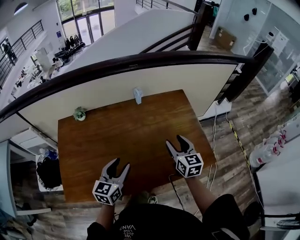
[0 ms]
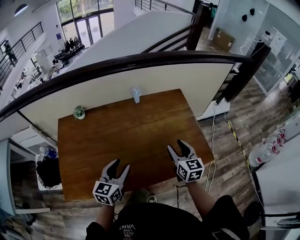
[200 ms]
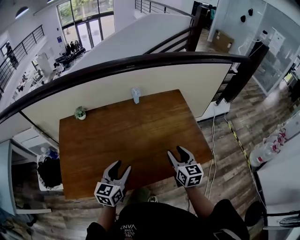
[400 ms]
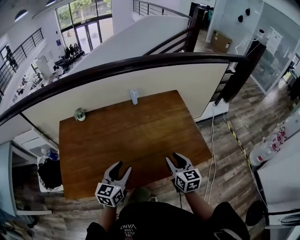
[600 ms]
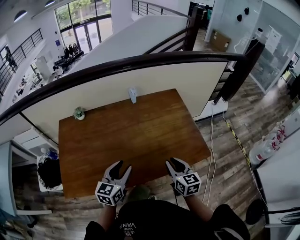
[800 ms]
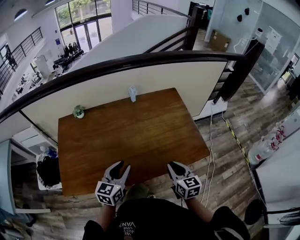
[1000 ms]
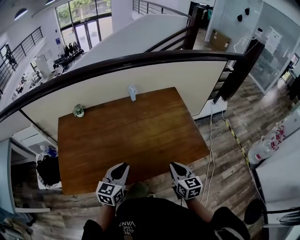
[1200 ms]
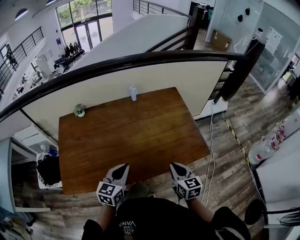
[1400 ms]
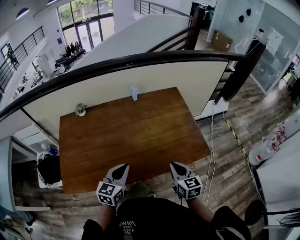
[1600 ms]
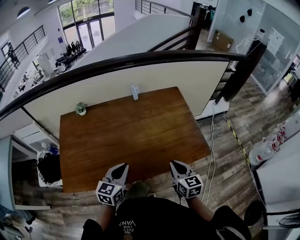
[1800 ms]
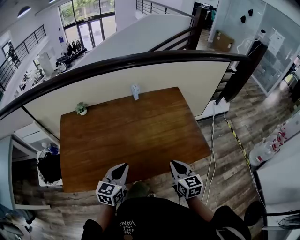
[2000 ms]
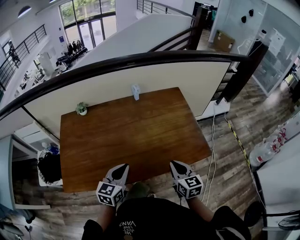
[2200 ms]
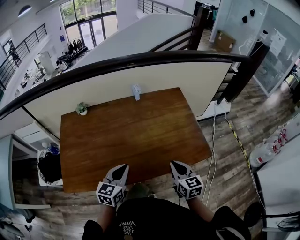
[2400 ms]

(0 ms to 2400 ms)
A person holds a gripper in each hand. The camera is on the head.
0 ms - 1200 ms: The right gripper shifts about 15 cm backward, and closes up, while the left gripper shifts roughly 5 cm backward, and closes.
1200 ms - 2400 ms: The grippers make only small movements.

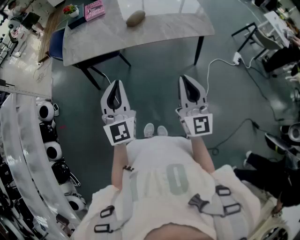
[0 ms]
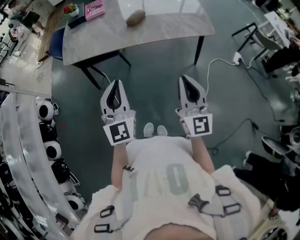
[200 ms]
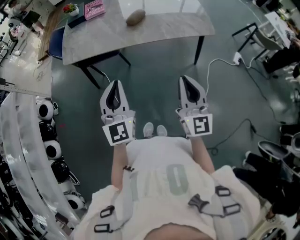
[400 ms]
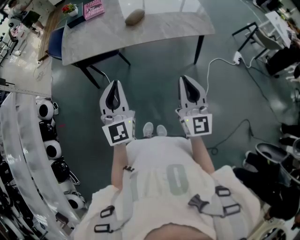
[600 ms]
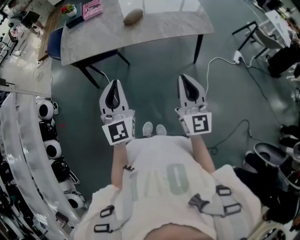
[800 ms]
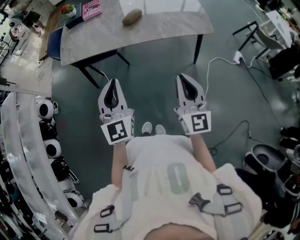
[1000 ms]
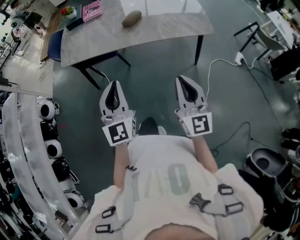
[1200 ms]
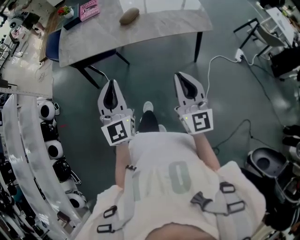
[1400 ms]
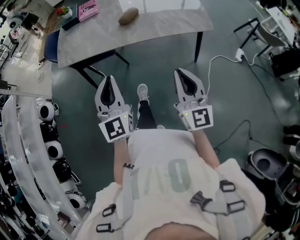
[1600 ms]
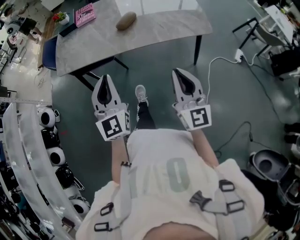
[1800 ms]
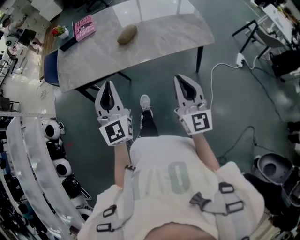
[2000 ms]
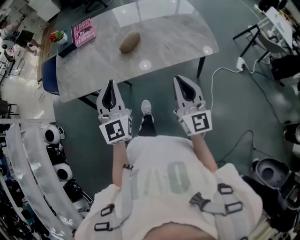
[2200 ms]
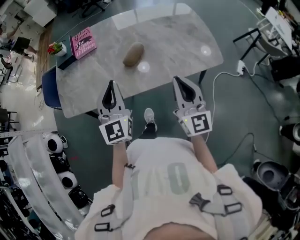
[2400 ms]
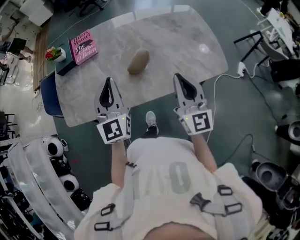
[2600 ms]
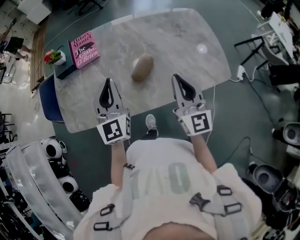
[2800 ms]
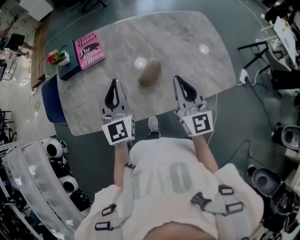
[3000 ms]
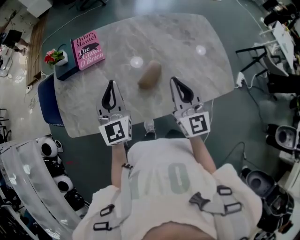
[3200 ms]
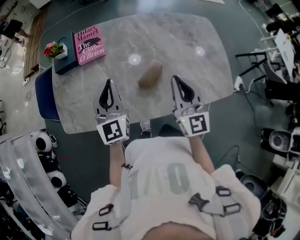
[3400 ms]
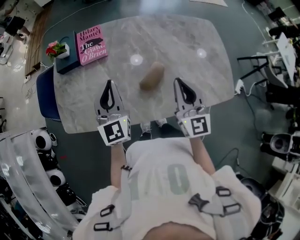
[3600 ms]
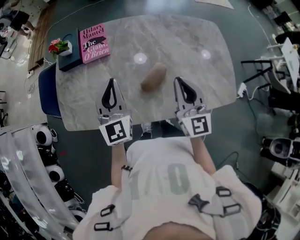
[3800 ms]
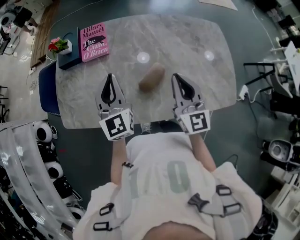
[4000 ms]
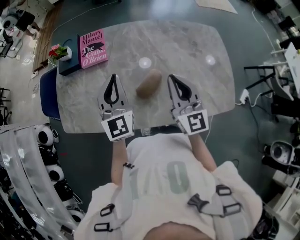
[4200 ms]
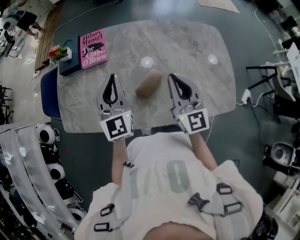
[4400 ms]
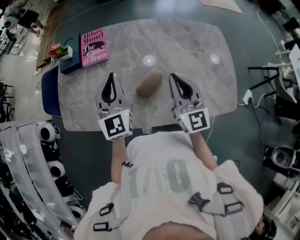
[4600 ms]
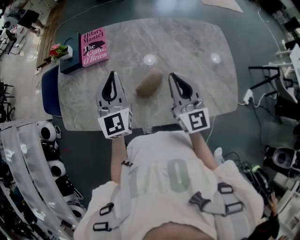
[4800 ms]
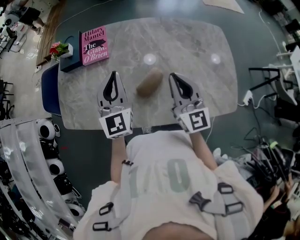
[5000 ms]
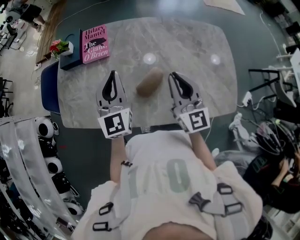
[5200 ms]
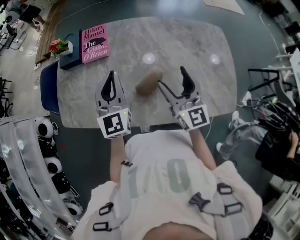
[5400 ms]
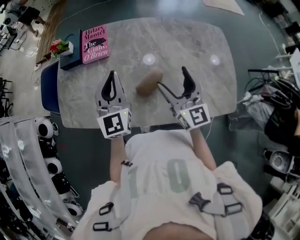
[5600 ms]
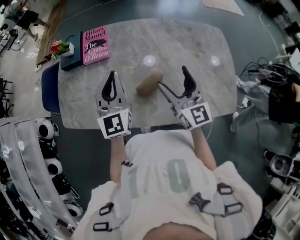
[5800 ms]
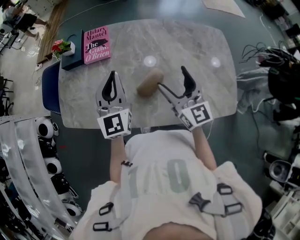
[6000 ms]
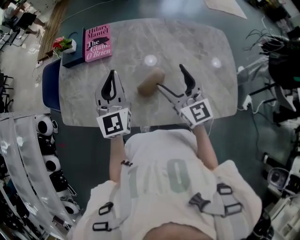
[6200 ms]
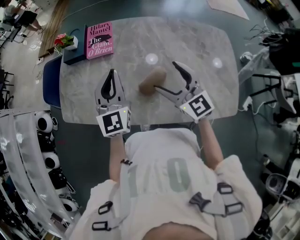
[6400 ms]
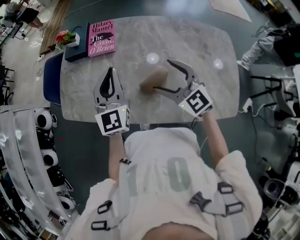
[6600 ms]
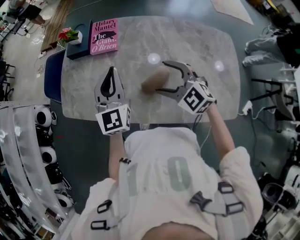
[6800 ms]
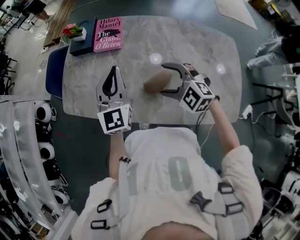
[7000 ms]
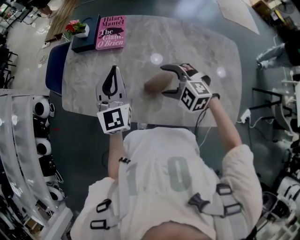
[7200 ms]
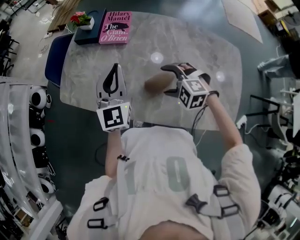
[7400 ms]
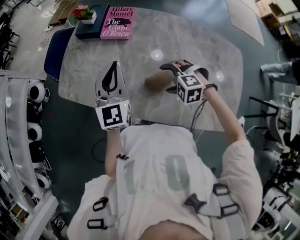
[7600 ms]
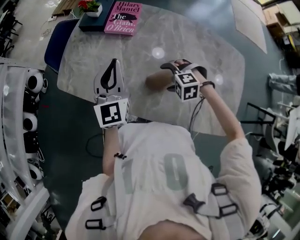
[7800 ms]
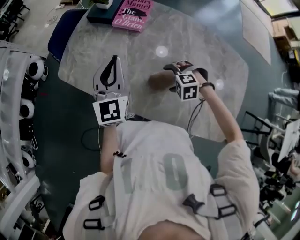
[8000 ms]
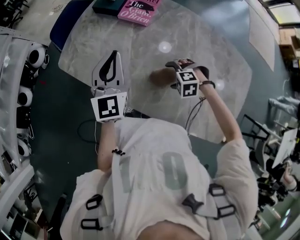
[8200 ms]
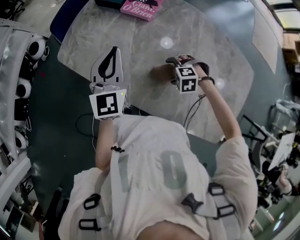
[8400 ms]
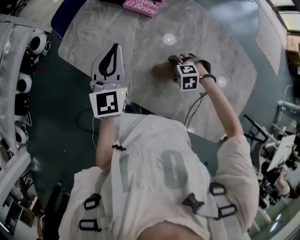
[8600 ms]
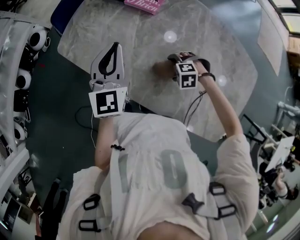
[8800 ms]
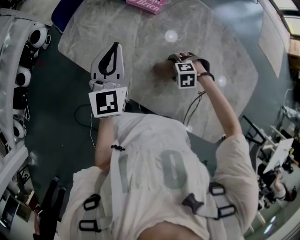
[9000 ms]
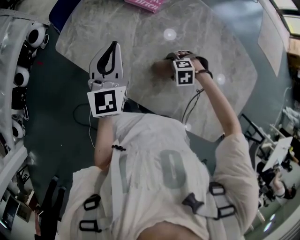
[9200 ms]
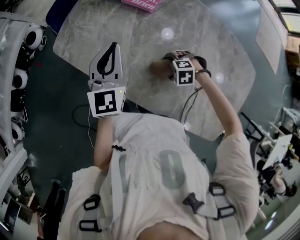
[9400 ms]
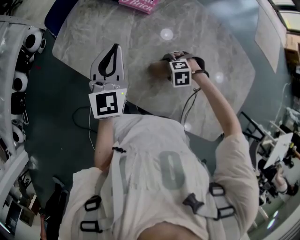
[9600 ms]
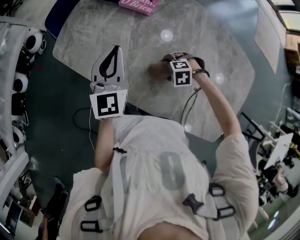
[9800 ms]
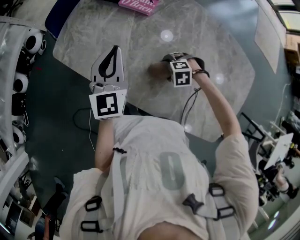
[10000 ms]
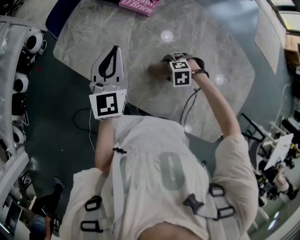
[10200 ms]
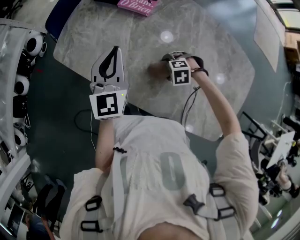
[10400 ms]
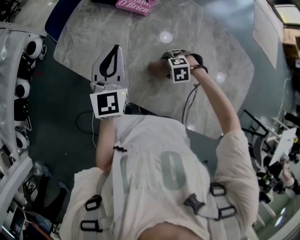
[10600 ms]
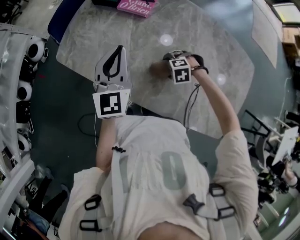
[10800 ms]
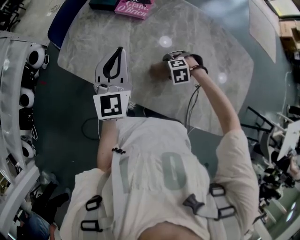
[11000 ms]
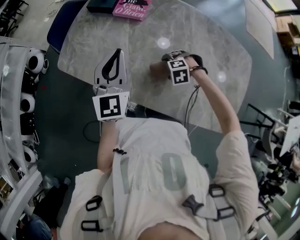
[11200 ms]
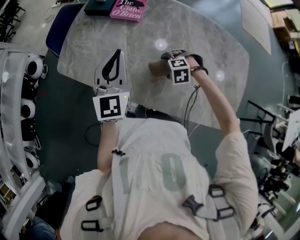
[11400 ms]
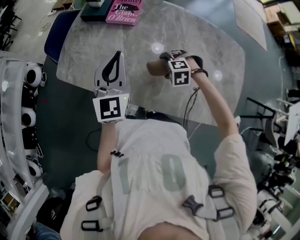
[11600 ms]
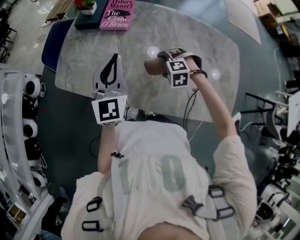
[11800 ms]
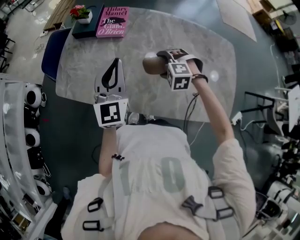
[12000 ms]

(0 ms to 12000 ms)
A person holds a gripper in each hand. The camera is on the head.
0 ms - 1600 ms: The right gripper shifts by about 5 cm.
1600 ms - 3000 ms: The two grippers travel together, forward, approximately 50 cm.
3000 ms - 4400 ms: The two grippers go about 5 cm forward.
4400 ms - 6000 ms: The right gripper opens.
6000 ms - 7600 ms: The right gripper shifts about 15 cm downward, and points its fingers some 70 degrees further downward. Meanwhile the left gripper ends up roughly 5 cm from where it was.
7600 ms - 9000 ms: The left gripper shifts by roughly 5 cm. The right gripper heads downward, covering roughly 15 cm, and swivels about 30 degrees.
9000 ms - 10400 ms: The grippers make only small movements.
10400 ms - 12000 ms: The right gripper shifts roughly 15 cm upward, and changes its angle by some 40 degrees. The left gripper shifts about 5 cm upward, and changes its angle by roughly 20 degrees.

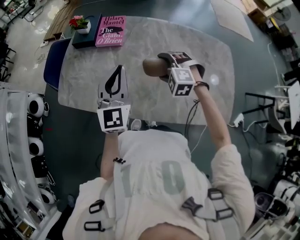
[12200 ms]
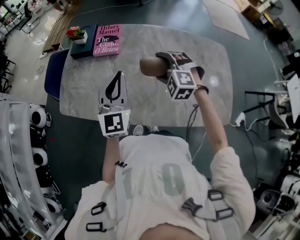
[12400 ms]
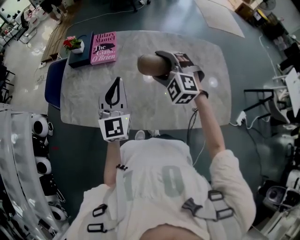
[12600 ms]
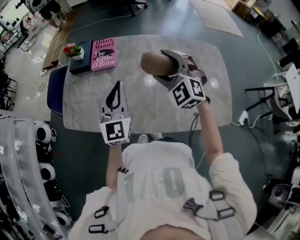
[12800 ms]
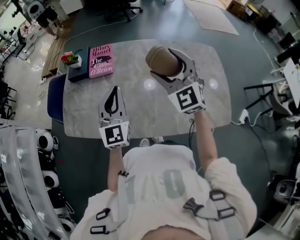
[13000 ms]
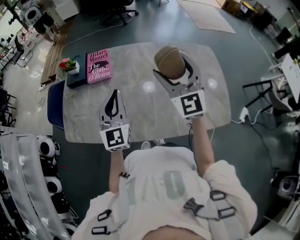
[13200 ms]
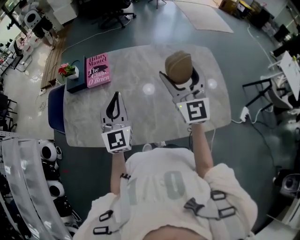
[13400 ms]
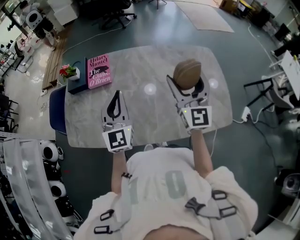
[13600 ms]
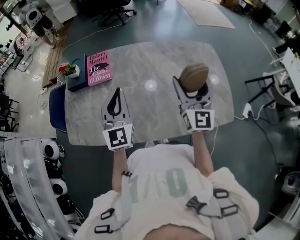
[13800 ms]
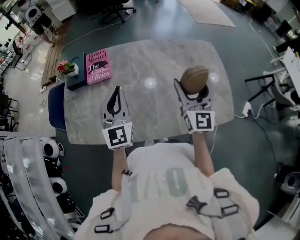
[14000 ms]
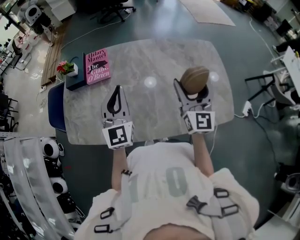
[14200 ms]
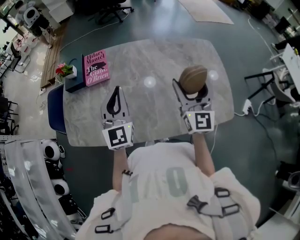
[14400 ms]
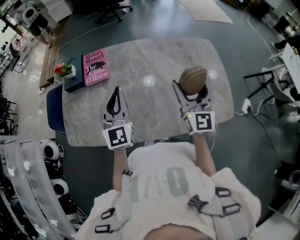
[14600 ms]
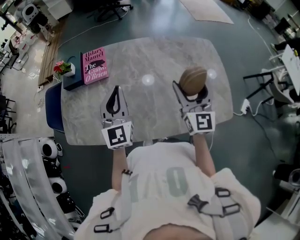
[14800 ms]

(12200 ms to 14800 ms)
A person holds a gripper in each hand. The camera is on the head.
12200 ms - 13400 ms: The right gripper heads upward, covering approximately 25 cm, and angles its fingers upward, by about 70 degrees.
13400 ms - 14800 ms: The right gripper travels downward and to the right by approximately 10 cm.

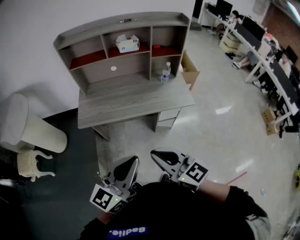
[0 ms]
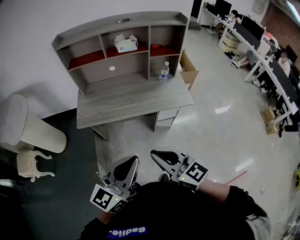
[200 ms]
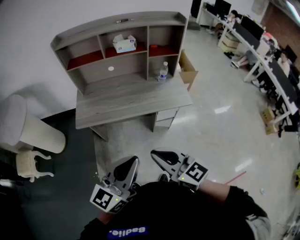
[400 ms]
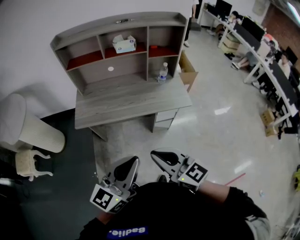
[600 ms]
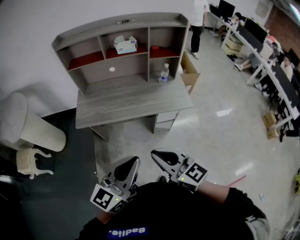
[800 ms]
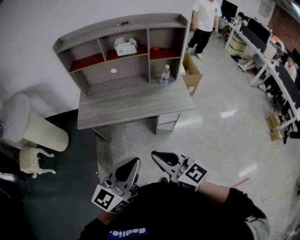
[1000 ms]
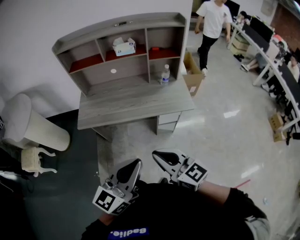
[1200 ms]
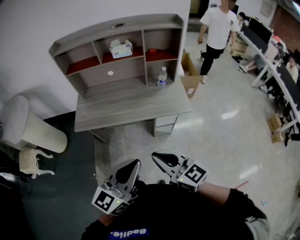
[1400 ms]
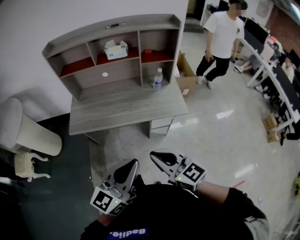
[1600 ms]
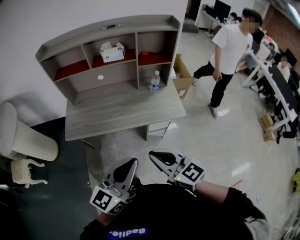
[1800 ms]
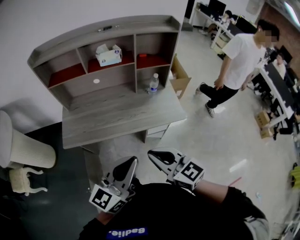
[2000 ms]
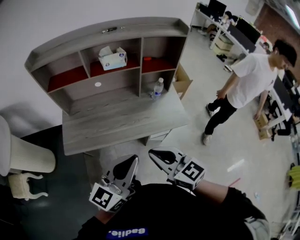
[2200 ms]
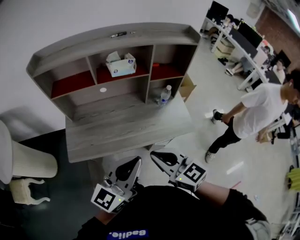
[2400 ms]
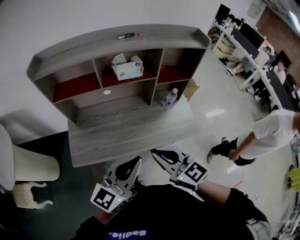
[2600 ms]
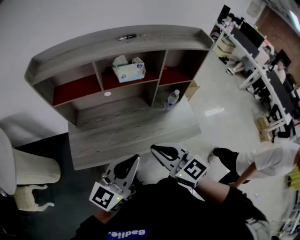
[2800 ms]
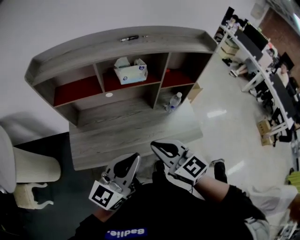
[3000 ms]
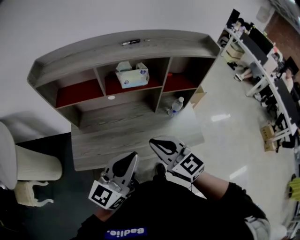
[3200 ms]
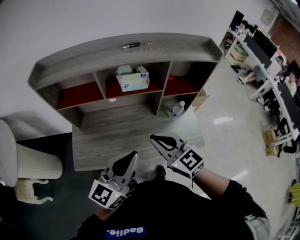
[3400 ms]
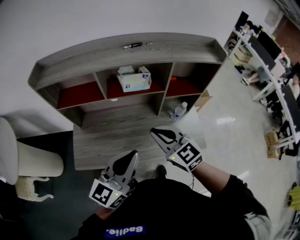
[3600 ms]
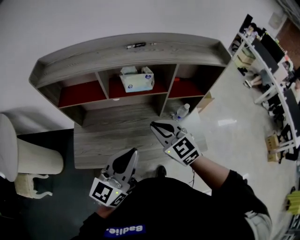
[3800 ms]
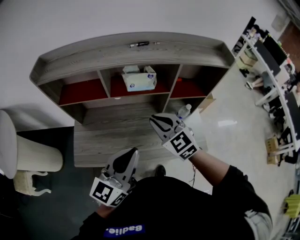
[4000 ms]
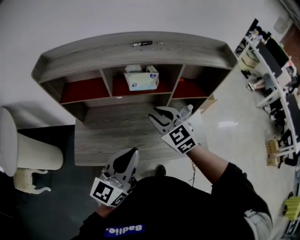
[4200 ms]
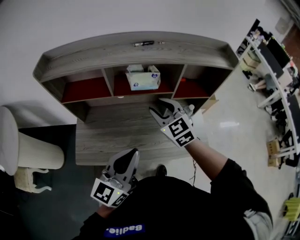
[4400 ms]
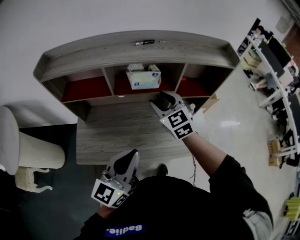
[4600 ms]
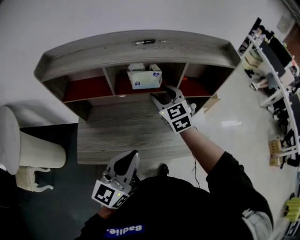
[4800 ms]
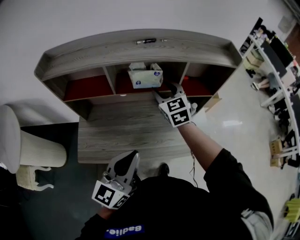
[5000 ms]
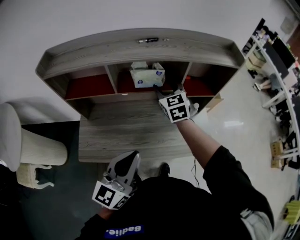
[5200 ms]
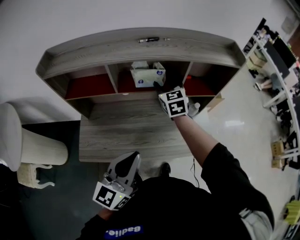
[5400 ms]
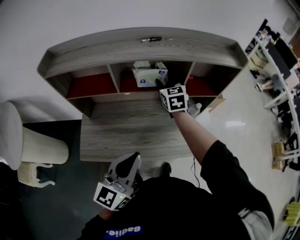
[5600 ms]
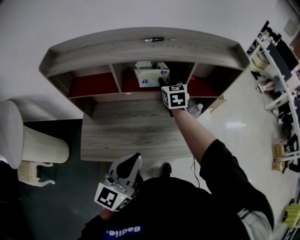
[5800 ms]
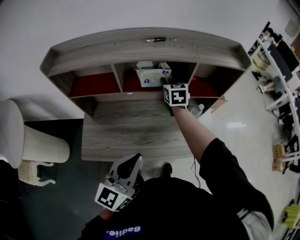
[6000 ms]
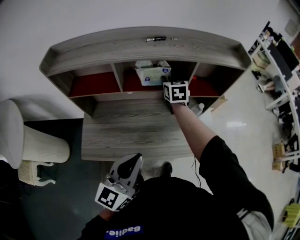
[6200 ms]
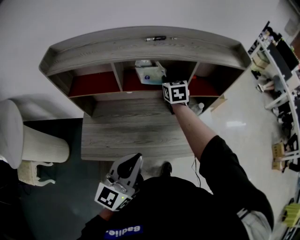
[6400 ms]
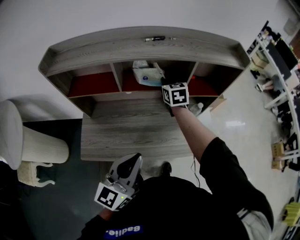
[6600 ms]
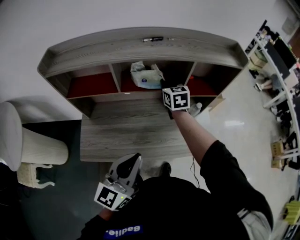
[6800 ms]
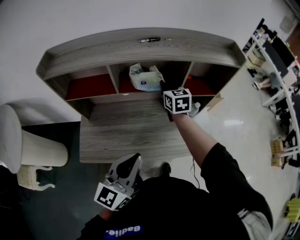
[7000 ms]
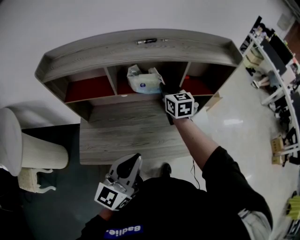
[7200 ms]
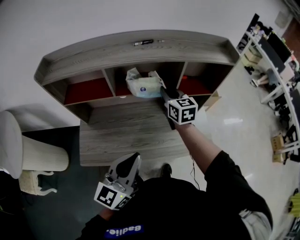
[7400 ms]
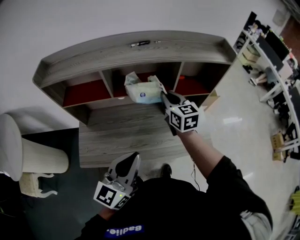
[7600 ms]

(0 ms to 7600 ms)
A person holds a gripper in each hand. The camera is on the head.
0 ms - 1600 ms: Both grippers travel together to the right, roughly 10 cm.
1600 ms - 3000 ms: Both grippers move forward and to the left, about 30 cm.
3000 ms - 4600 ms: The right gripper heads forward, covering about 25 cm, changes its angle by roughly 20 degrees, and opens up, while the left gripper goes approximately 5 cm forward.
4600 ms - 6000 ms: The right gripper travels forward and downward by some 15 cm, and changes its angle by about 30 degrees.
6000 ms - 7600 ms: The right gripper moves backward, some 10 cm, and closes up.
